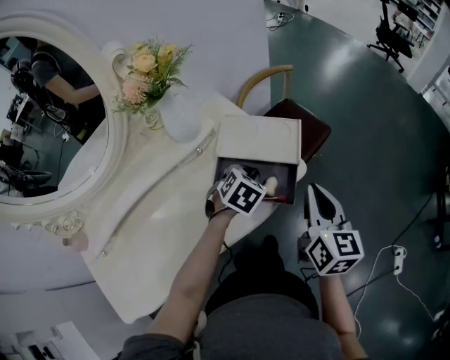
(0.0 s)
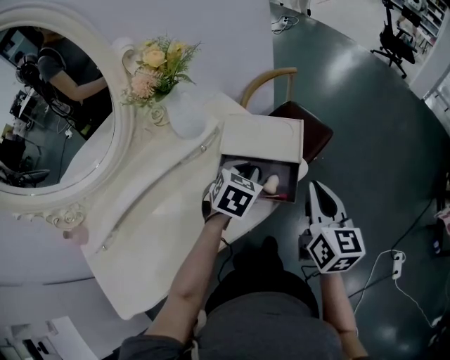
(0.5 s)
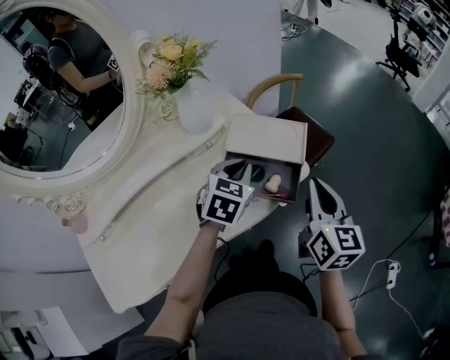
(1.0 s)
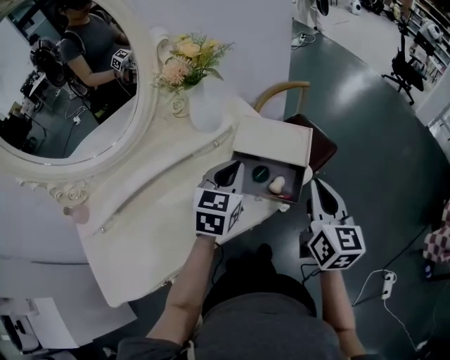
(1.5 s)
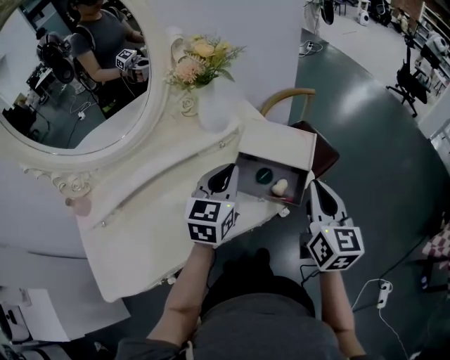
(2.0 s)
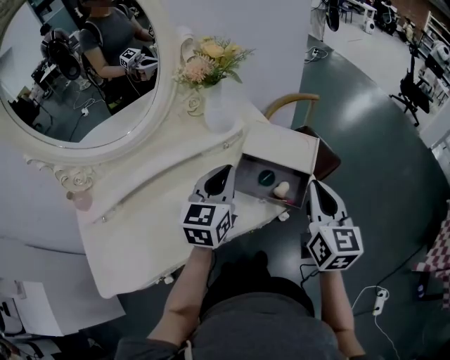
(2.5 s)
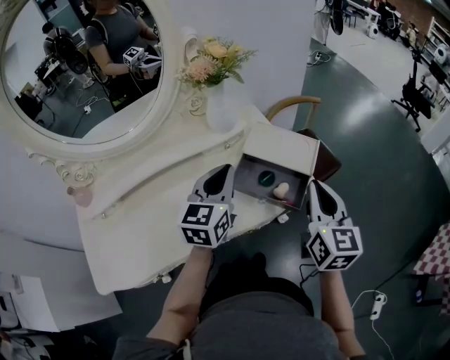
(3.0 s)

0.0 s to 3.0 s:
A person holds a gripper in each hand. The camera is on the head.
0.0 to 1.5 s: The left gripper goes some 15 cm upward and to the left, and tips its fingers upward by about 30 degrees.
1.5 to 3.0 s: The left gripper moves approximately 5 cm.

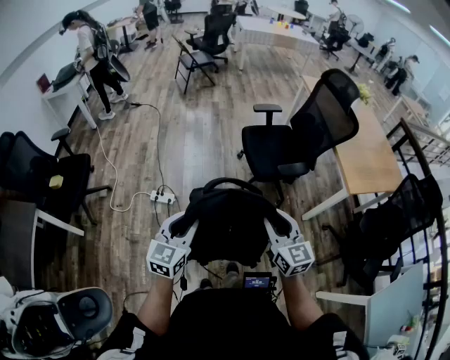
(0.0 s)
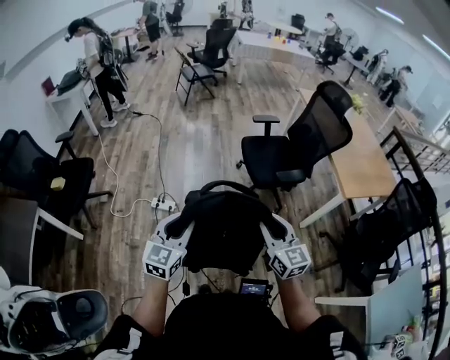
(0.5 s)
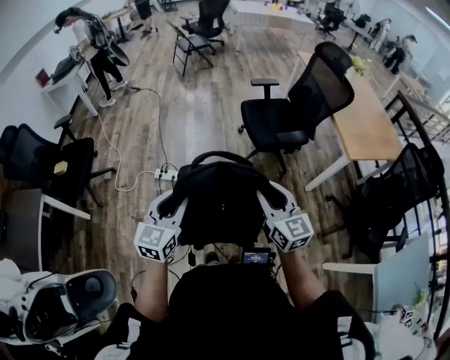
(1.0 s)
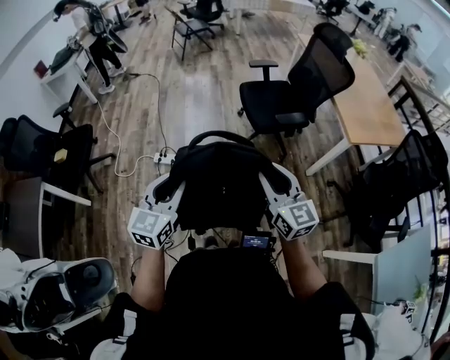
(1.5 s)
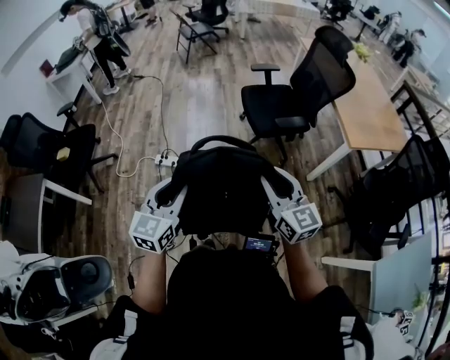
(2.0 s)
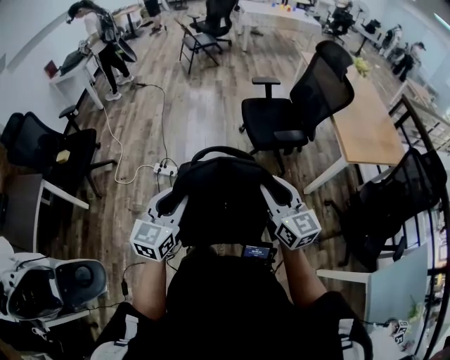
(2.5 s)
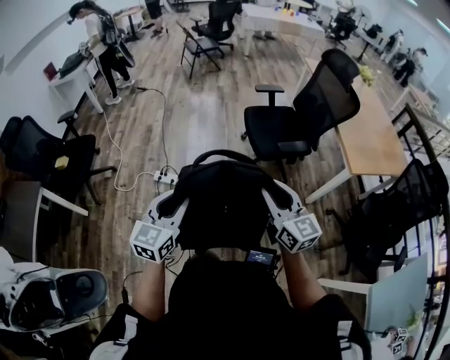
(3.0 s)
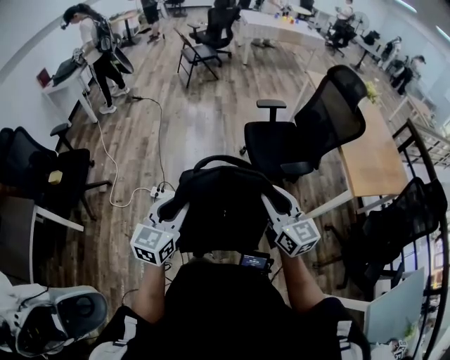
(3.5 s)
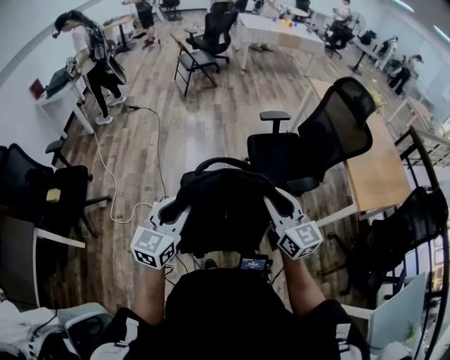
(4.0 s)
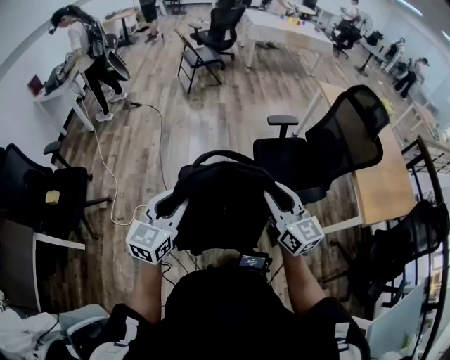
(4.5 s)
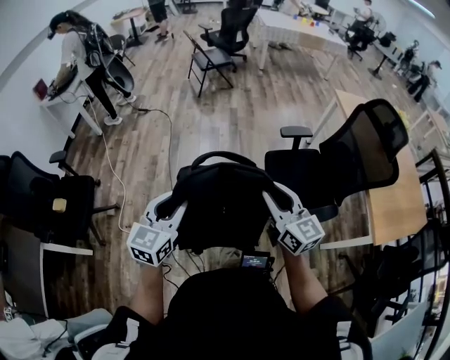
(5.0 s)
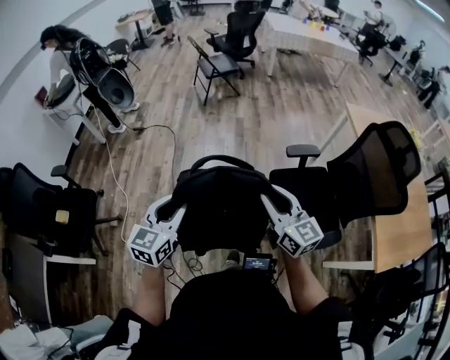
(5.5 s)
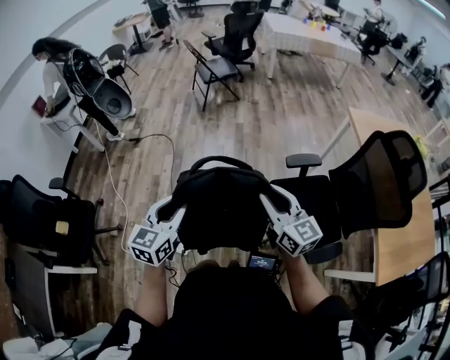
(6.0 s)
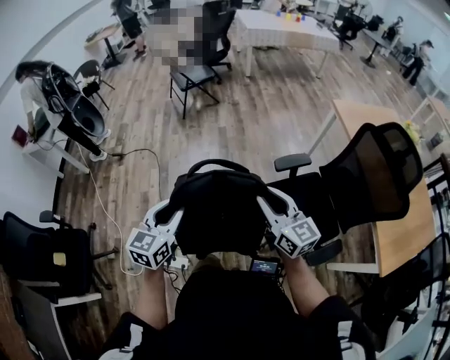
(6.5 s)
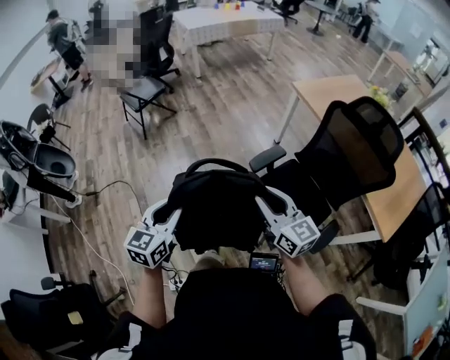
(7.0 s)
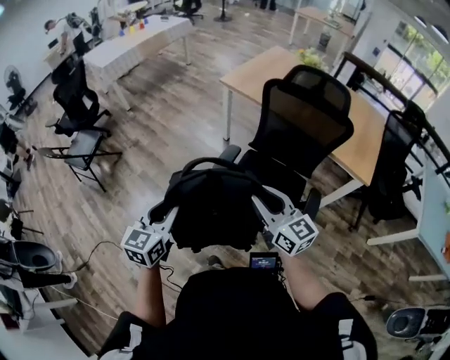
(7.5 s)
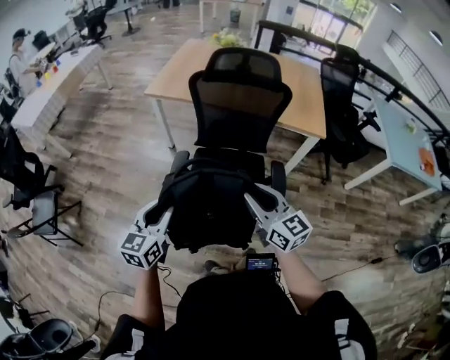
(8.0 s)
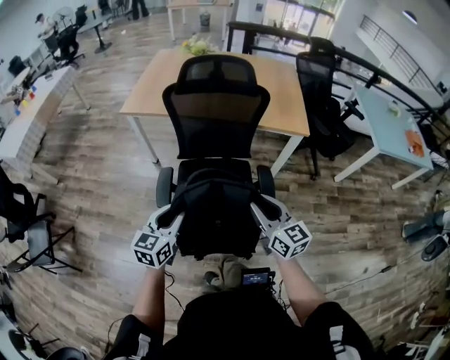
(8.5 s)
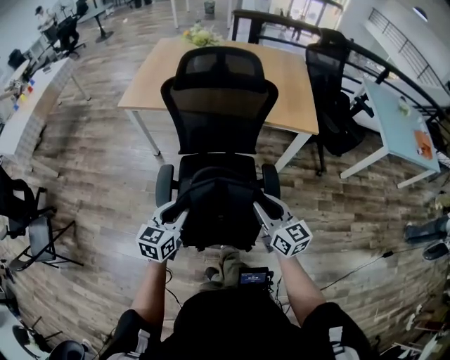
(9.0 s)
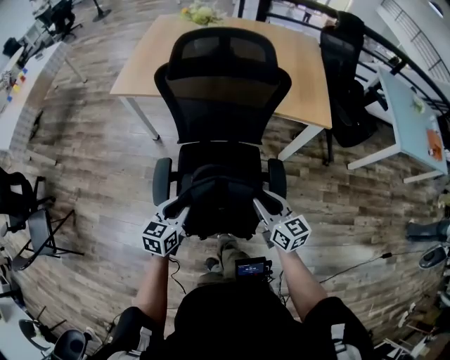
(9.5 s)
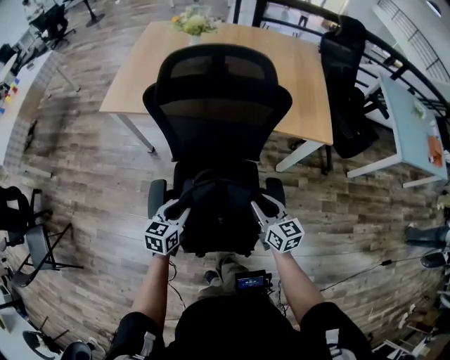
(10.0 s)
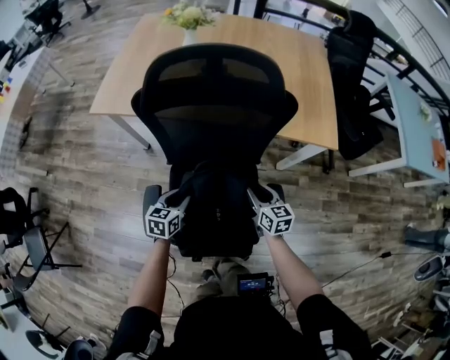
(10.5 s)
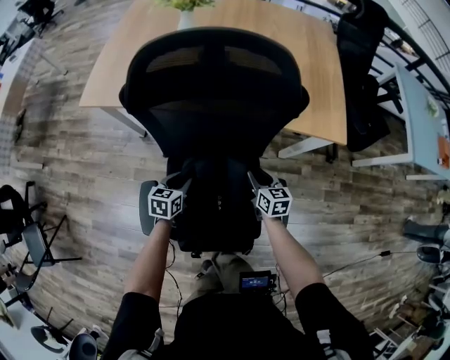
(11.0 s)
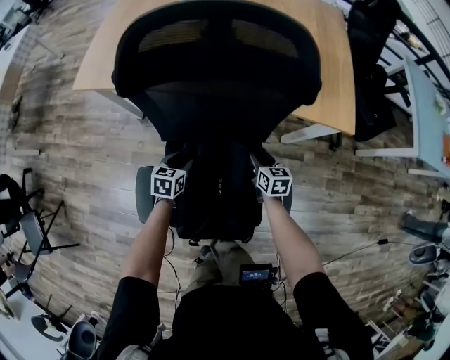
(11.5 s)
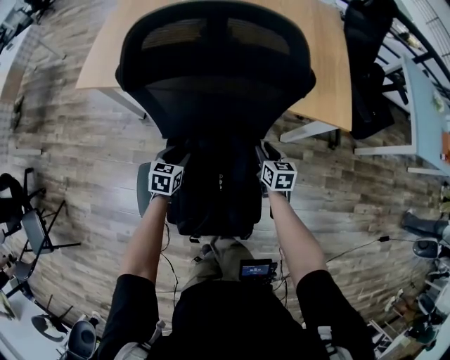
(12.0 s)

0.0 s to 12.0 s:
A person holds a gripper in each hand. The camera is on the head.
0.0 to 2.0 s: The grippers both shift backward by about 10 cm.
2.0 to 4.0 s: The grippers both shift forward by roughly 30 cm.
4.0 to 6.0 s: The two grippers travel together, forward, about 40 cm.
6.0 to 8.0 s: The left gripper changes place by some 40 cm, and rotates some 70 degrees, while the right gripper shifts by about 20 cm, and rotates some 70 degrees.
8.0 to 10.0 s: The left gripper moves forward and downward, some 35 cm, and turns by roughly 20 degrees. Meanwhile the right gripper heads forward, downward and to the right, covering roughly 35 cm, and turns by roughly 20 degrees.
10.0 to 12.0 s: Both grippers move forward and downward, about 25 cm. The right gripper changes its angle by approximately 20 degrees.

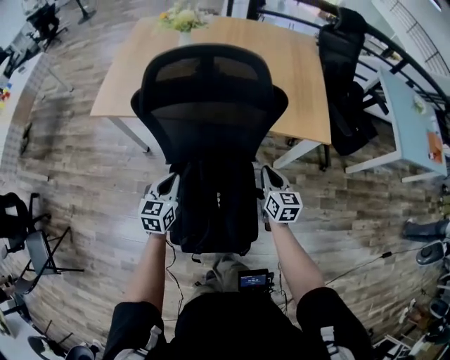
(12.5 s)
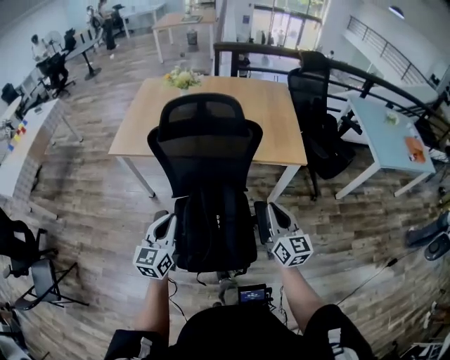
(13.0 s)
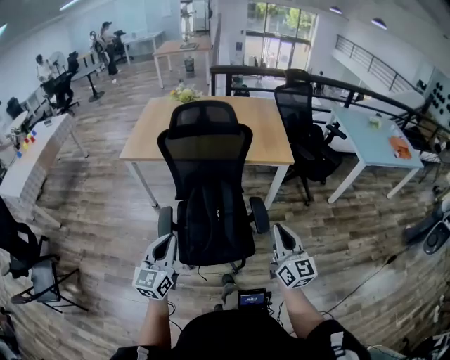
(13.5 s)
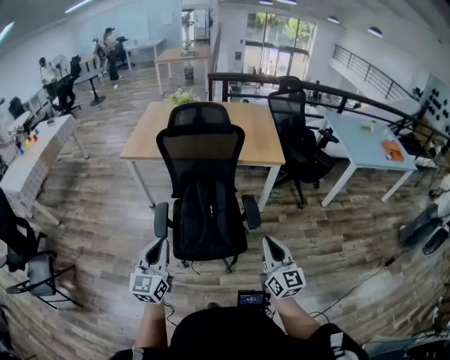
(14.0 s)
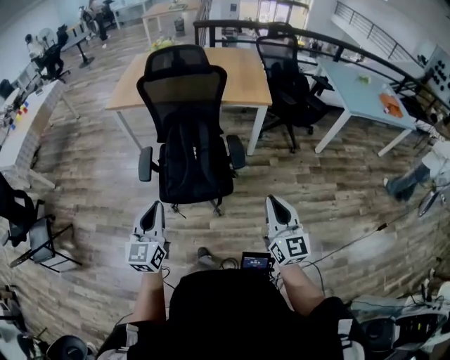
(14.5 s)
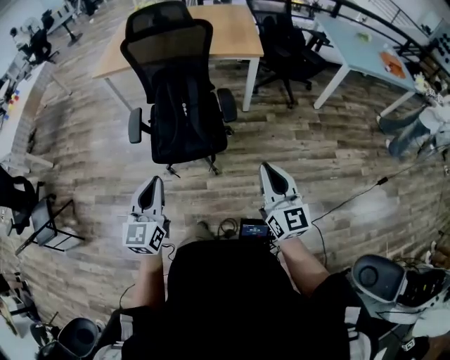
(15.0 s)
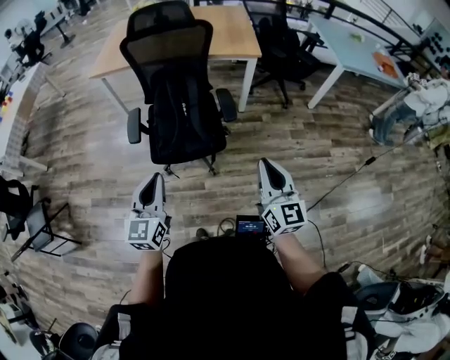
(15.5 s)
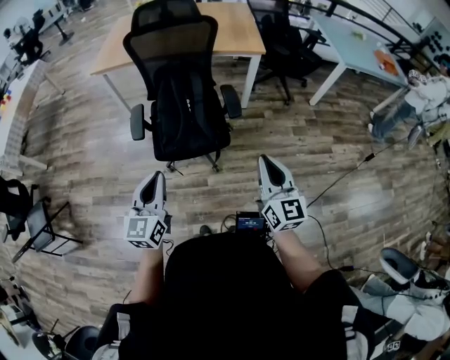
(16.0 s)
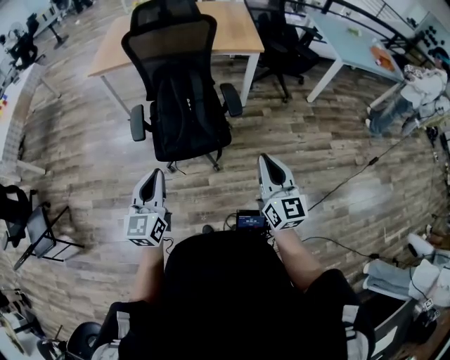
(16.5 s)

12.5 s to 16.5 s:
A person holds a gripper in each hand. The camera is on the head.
12.5 to 14.5 s: Both grippers are carried backward, approximately 60 cm. Both grippers move upward, some 25 cm. The right gripper turns by some 30 degrees. Meanwhile the left gripper turns by approximately 30 degrees.
14.5 to 16.5 s: The right gripper shifts approximately 10 cm to the left and backward, while the left gripper goes to the right and returns, some 5 cm each way.

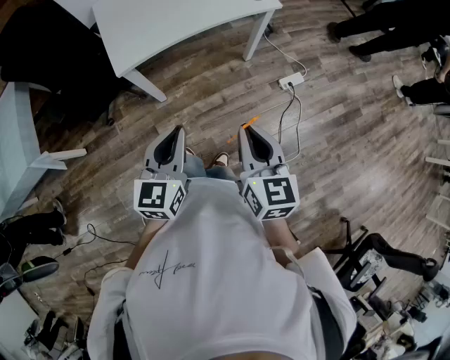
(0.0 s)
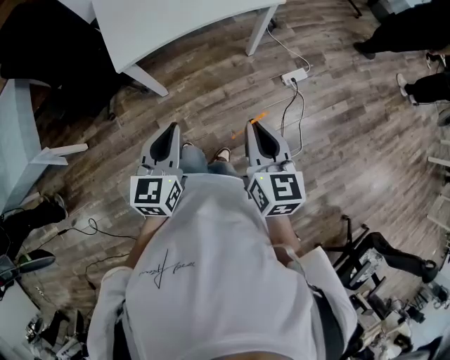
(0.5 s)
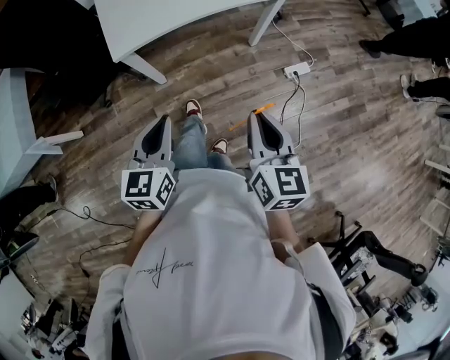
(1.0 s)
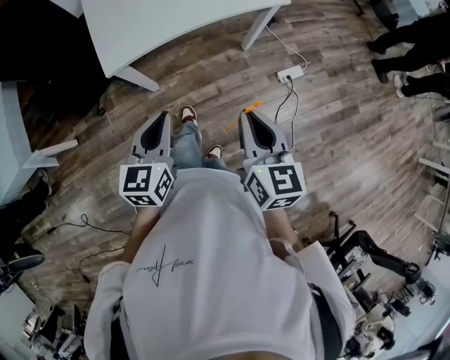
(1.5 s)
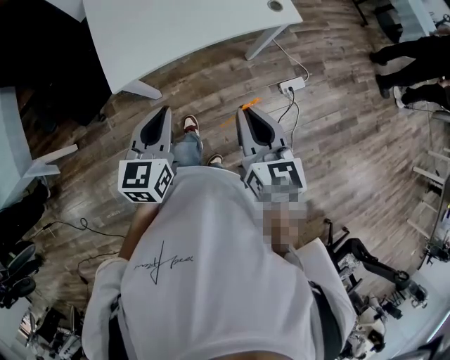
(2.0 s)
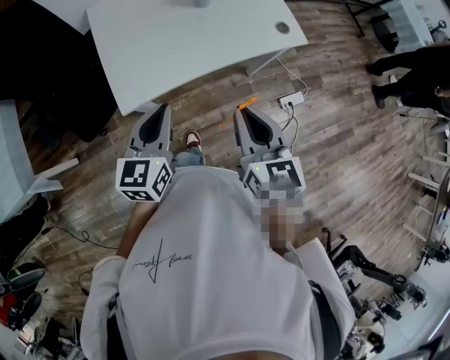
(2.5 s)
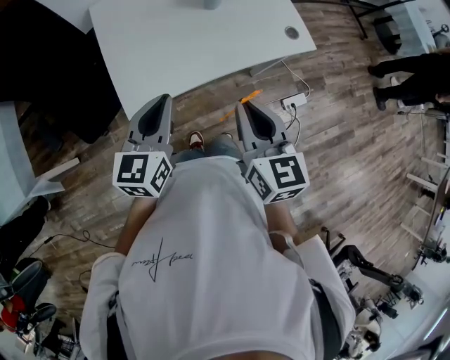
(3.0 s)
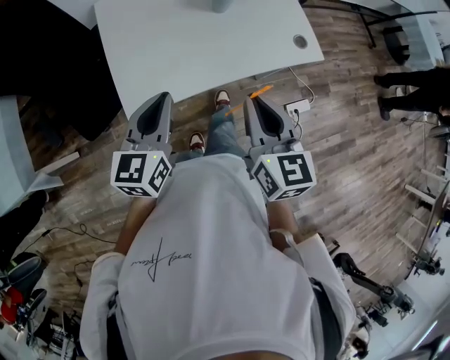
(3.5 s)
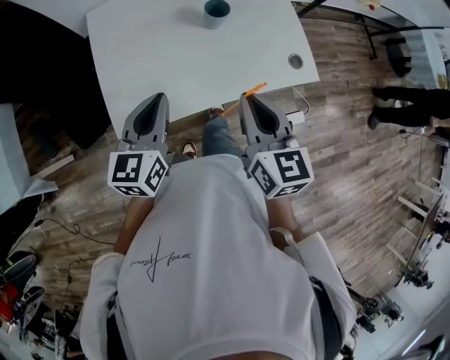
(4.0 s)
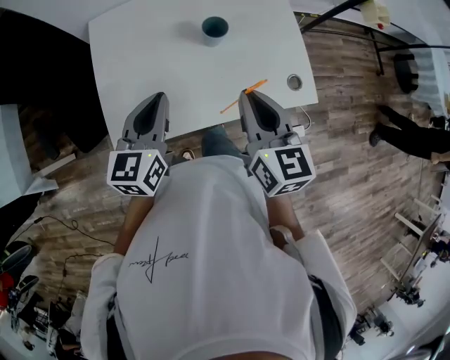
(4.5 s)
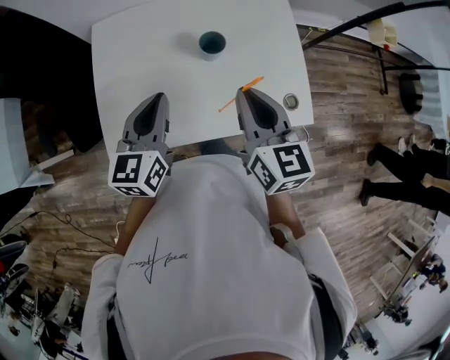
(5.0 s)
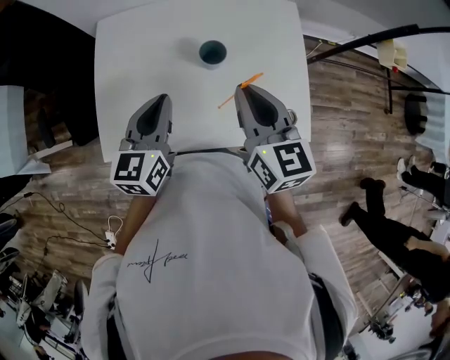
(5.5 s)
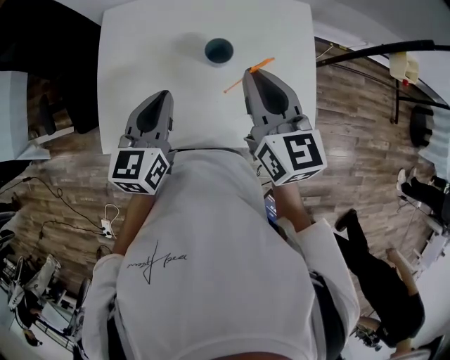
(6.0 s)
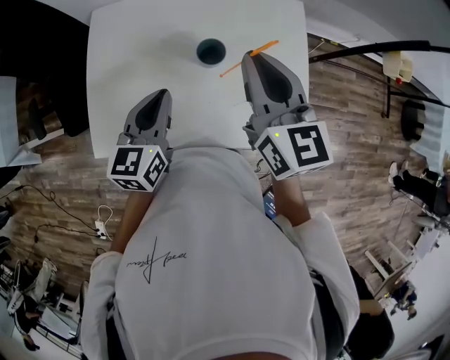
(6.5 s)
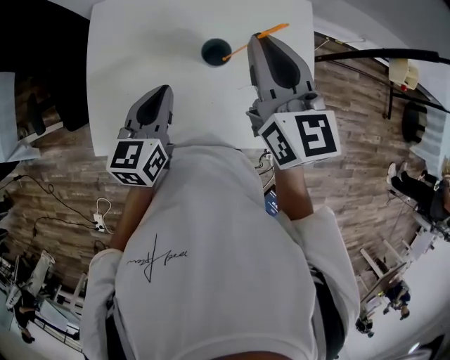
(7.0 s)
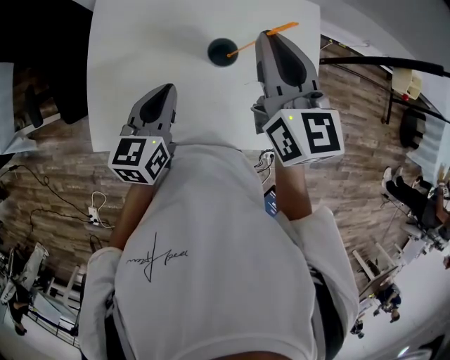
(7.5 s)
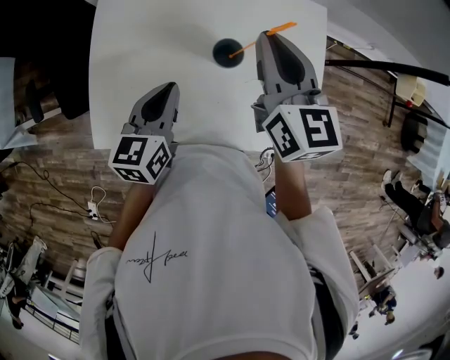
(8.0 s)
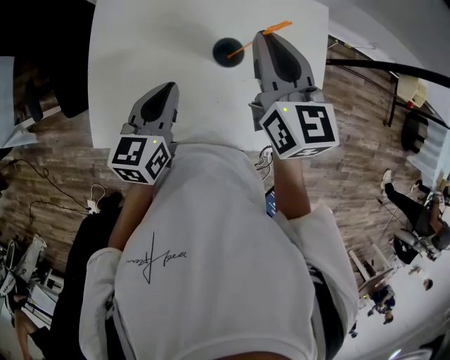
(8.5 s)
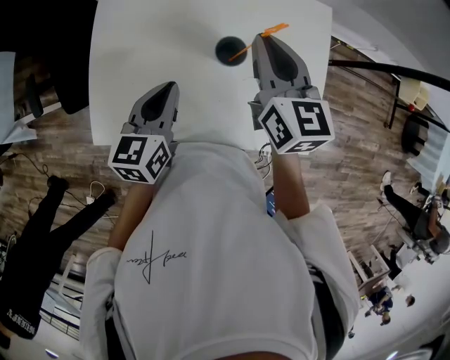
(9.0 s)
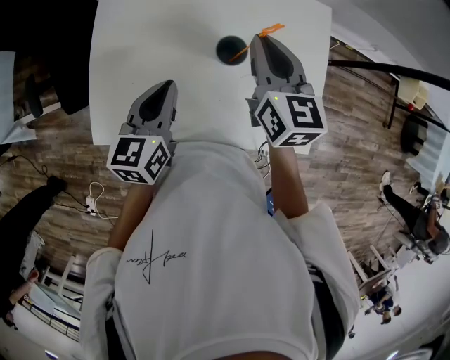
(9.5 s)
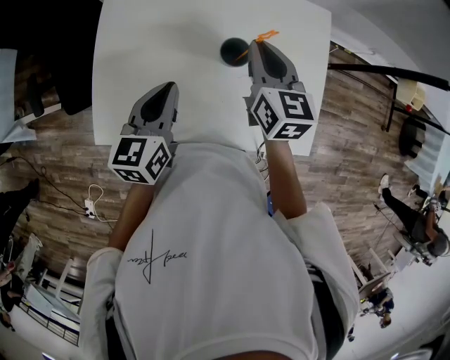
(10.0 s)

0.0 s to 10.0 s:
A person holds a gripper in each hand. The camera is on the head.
0.0 to 2.0 s: Both grippers move forward, about 20 cm.
2.0 to 4.0 s: The grippers both shift forward by roughly 25 cm.
4.0 to 6.0 s: The left gripper travels forward and to the right by roughly 15 cm, while the right gripper heads forward, covering approximately 20 cm, and swivels approximately 20 degrees.
6.0 to 8.0 s: The left gripper ends up some 5 cm from where it was. Meanwhile the right gripper heads forward, covering some 10 cm.
8.0 to 10.0 s: The right gripper heads downward, covering approximately 10 cm.
